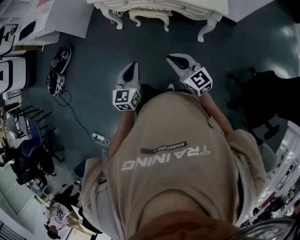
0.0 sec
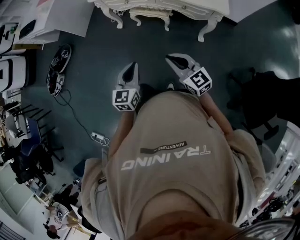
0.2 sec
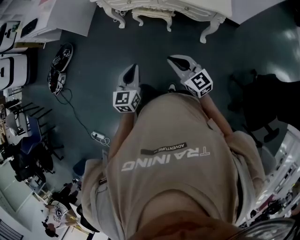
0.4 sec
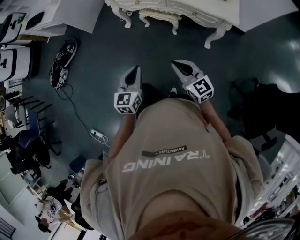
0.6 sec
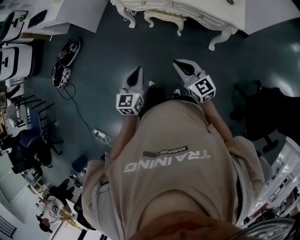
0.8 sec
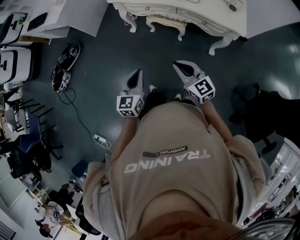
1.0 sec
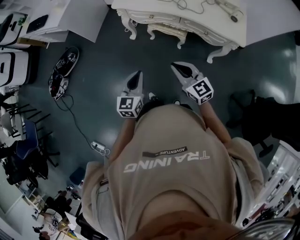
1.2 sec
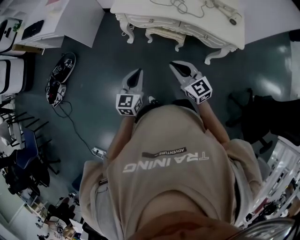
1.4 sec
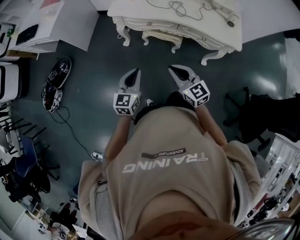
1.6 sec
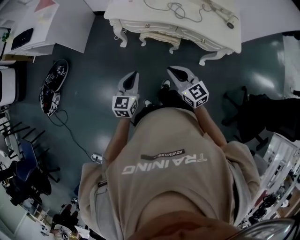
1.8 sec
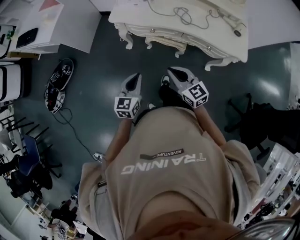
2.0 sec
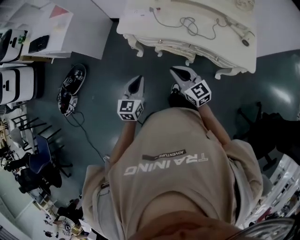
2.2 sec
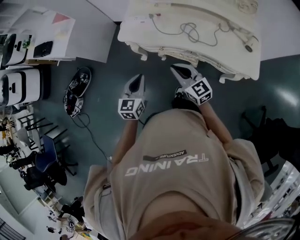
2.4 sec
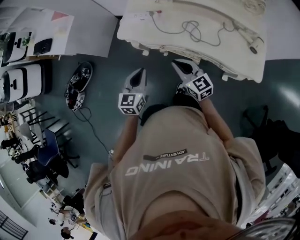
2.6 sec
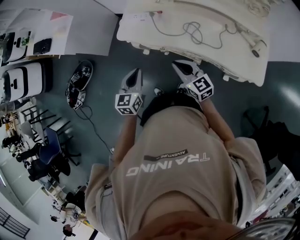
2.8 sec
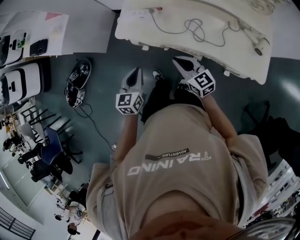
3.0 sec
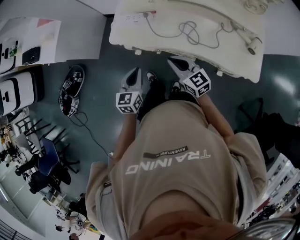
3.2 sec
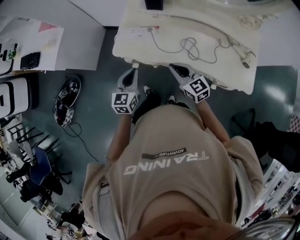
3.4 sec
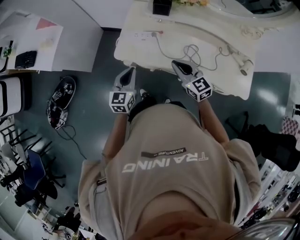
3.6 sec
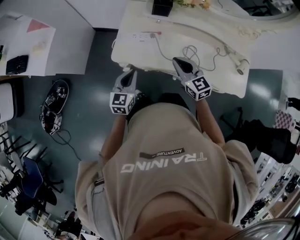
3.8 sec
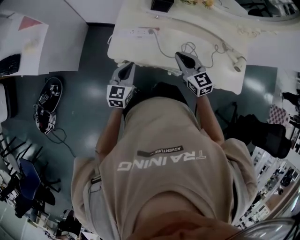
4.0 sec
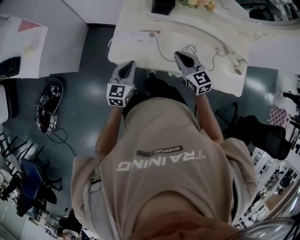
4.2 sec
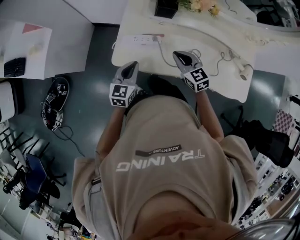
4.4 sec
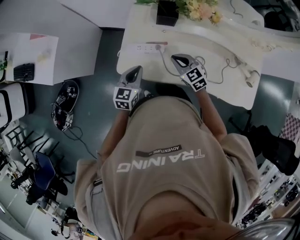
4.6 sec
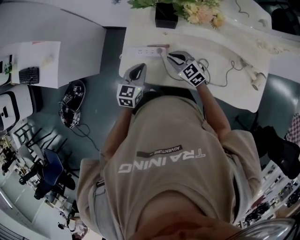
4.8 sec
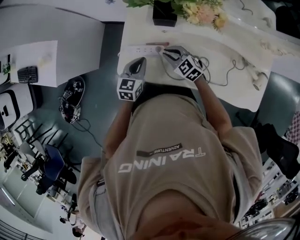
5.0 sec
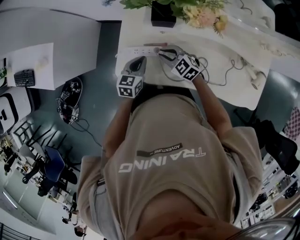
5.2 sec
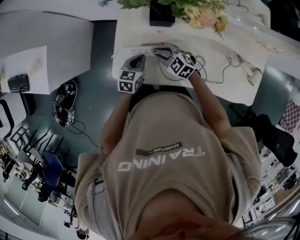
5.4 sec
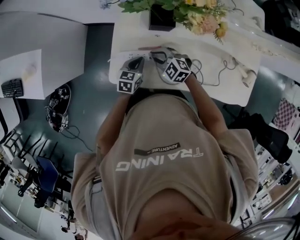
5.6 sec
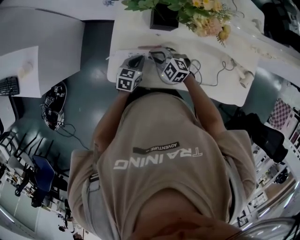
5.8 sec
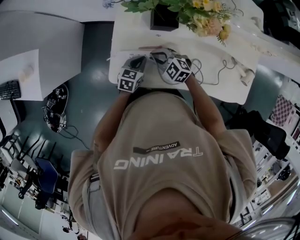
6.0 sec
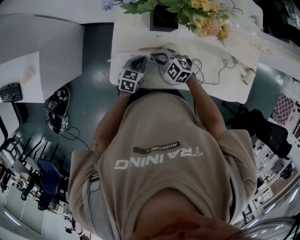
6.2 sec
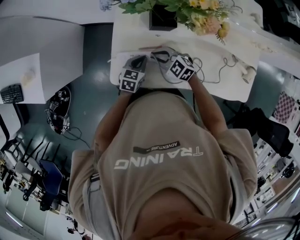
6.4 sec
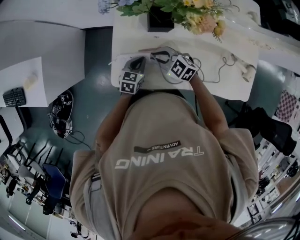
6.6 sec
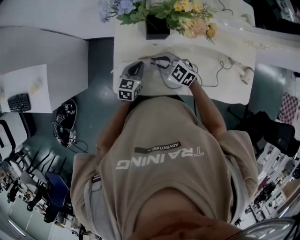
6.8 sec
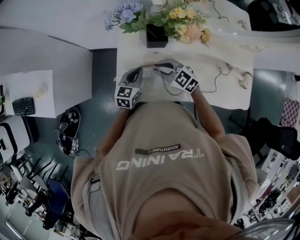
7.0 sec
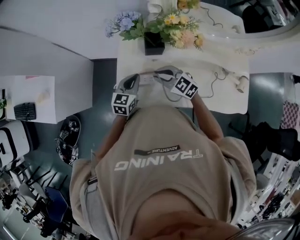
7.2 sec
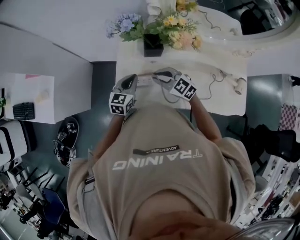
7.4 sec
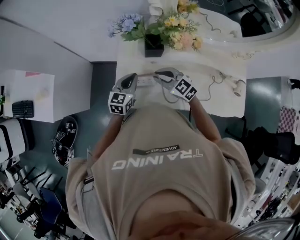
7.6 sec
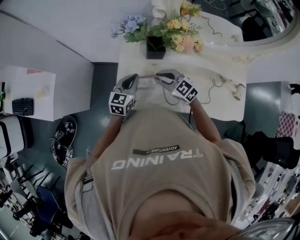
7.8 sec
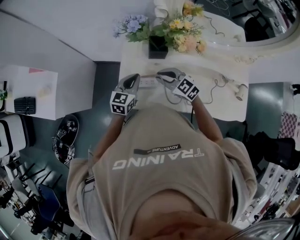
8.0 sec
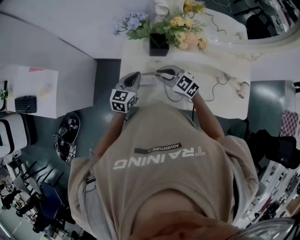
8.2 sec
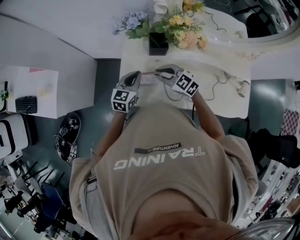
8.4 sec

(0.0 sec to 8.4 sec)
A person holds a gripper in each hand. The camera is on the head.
0.0 sec - 1.4 sec: Both grippers move forward and to the left, some 25 cm.
1.4 sec - 2.8 sec: The two grippers go some 30 cm forward.
2.8 sec - 4.2 sec: Both grippers move forward, roughly 25 cm. The right gripper changes its angle by some 20 degrees.
4.2 sec - 5.6 sec: The right gripper moves forward and downward, roughly 20 cm, rotates roughly 40 degrees, and opens up. The left gripper travels forward, downward and to the right by about 25 cm, and turns by some 30 degrees.
5.6 sec - 7.0 sec: The two grippers go about 10 cm upward.
7.0 sec - 8.4 sec: The left gripper shifts by roughly 5 cm.

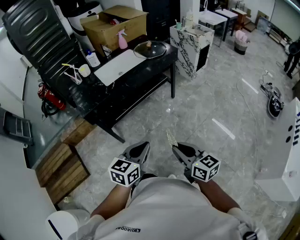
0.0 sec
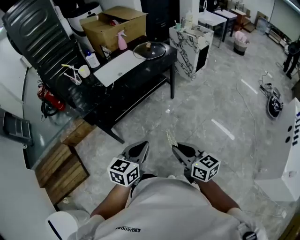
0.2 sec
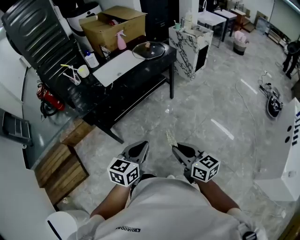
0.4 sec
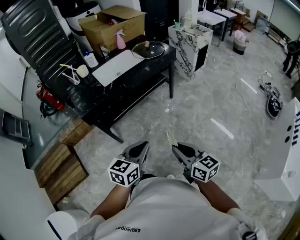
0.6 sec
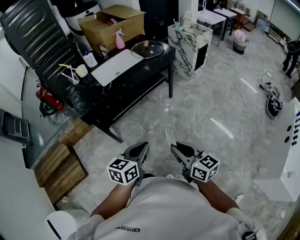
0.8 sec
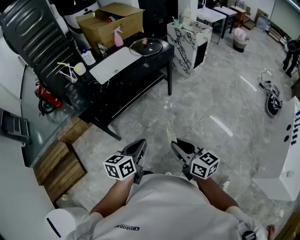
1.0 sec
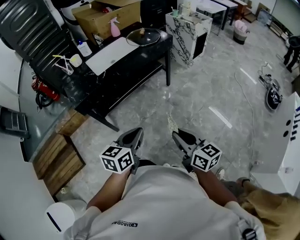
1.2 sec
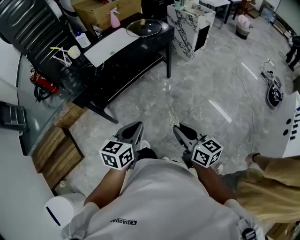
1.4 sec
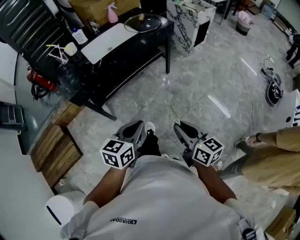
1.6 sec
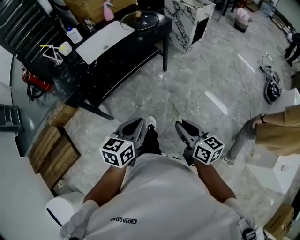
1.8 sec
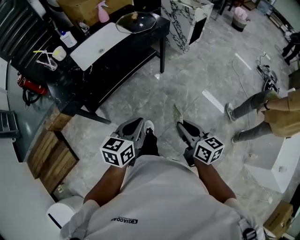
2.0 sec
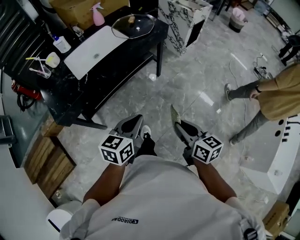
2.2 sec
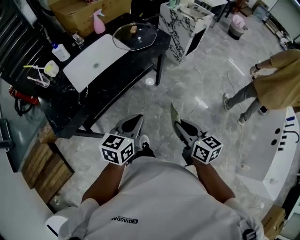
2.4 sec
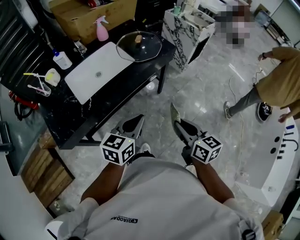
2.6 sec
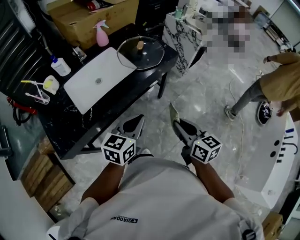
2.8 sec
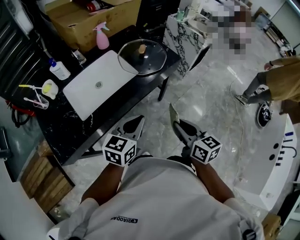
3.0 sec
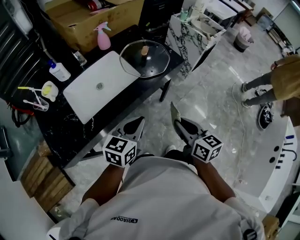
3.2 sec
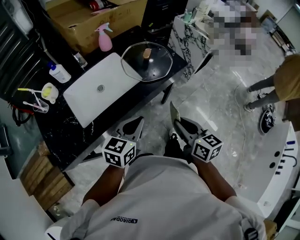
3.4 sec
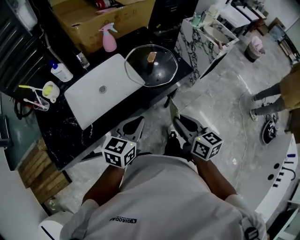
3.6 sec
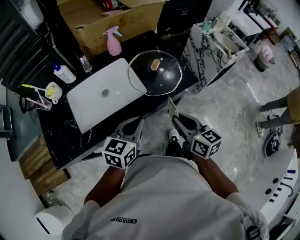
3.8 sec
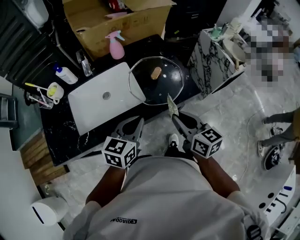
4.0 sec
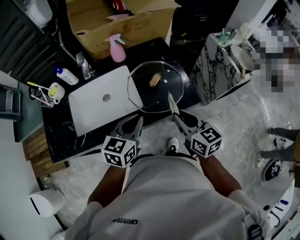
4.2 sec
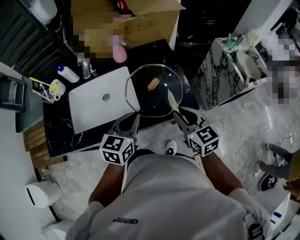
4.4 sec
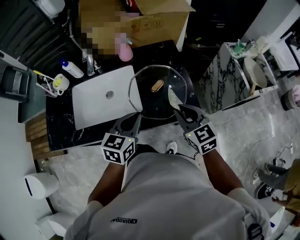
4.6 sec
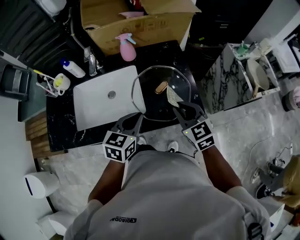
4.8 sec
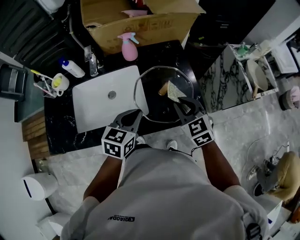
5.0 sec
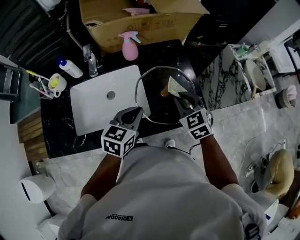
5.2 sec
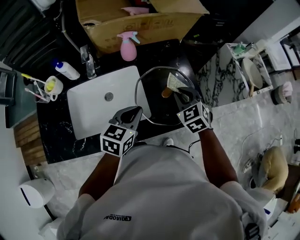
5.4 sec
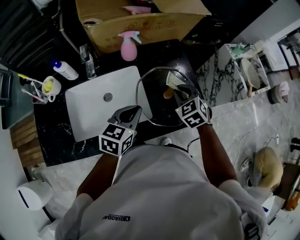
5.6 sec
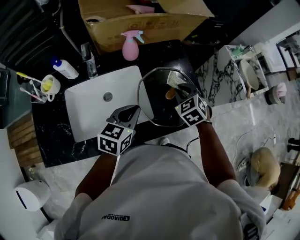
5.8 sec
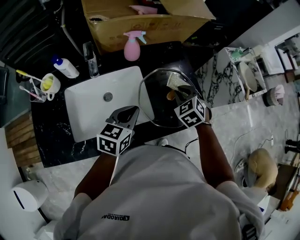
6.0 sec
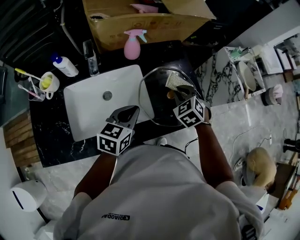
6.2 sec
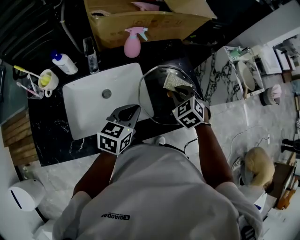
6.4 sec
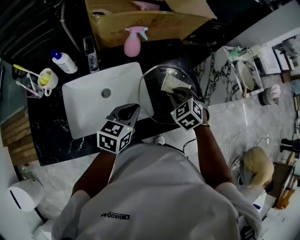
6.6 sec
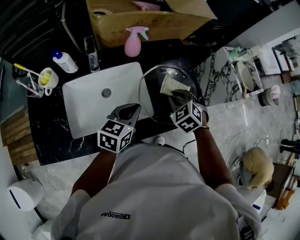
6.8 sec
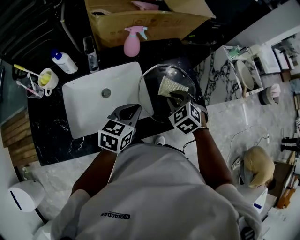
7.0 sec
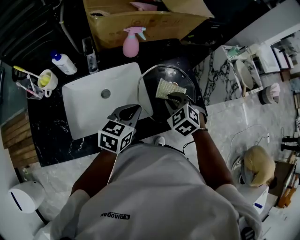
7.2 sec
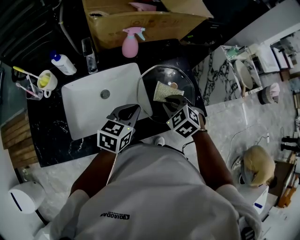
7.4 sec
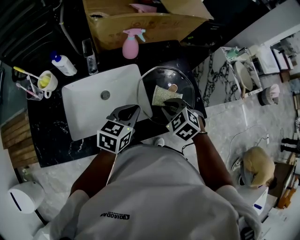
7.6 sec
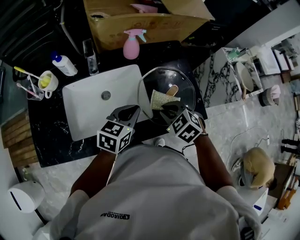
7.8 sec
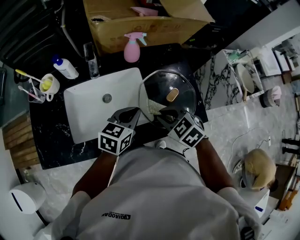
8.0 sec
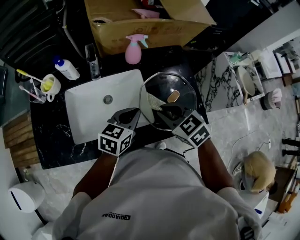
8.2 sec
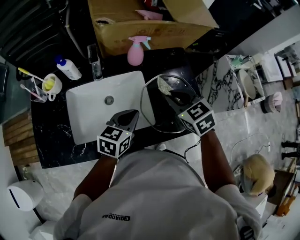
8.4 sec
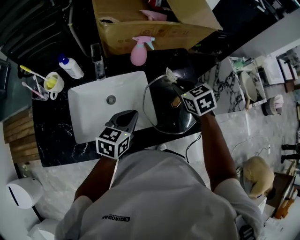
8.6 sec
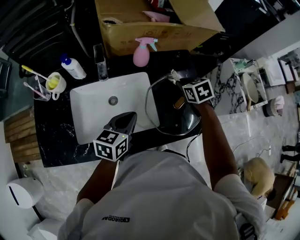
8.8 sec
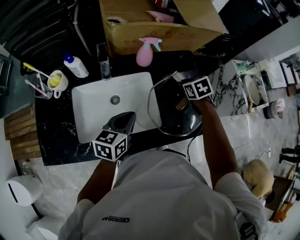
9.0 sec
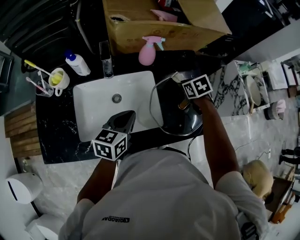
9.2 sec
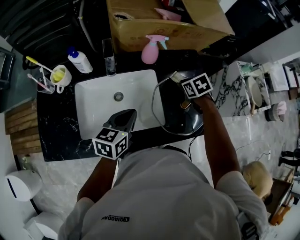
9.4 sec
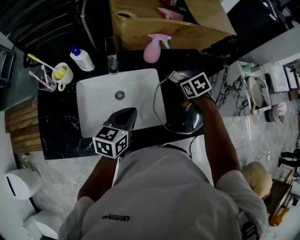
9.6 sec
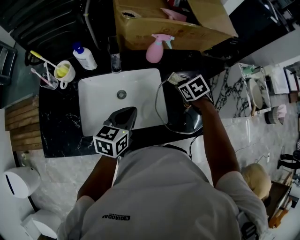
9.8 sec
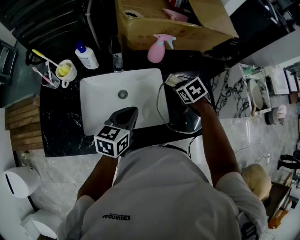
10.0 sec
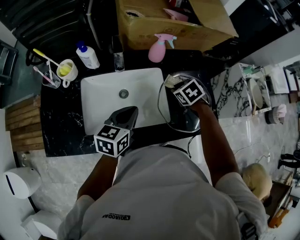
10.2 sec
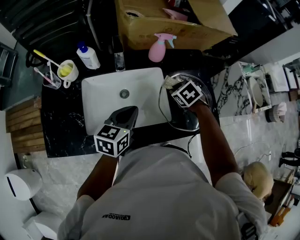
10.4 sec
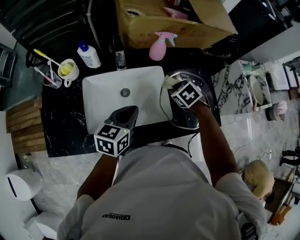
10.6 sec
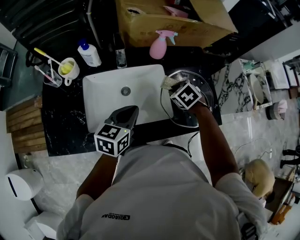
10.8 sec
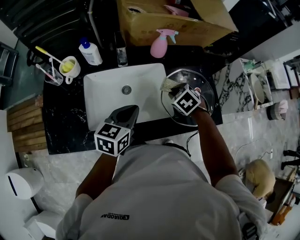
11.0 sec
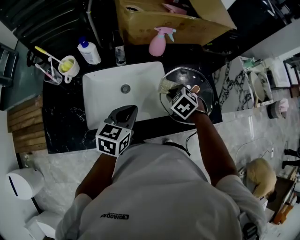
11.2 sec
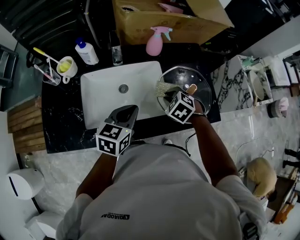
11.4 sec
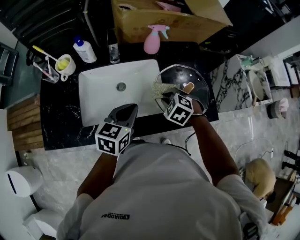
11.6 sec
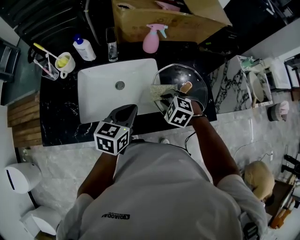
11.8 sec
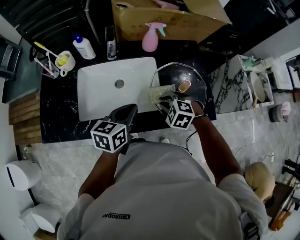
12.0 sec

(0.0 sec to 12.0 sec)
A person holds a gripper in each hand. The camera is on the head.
0.0 sec - 1.6 sec: The right gripper goes roughly 5 cm to the right. The left gripper ends up some 5 cm from where it was.
1.6 sec - 3.0 sec: Both grippers are carried forward, roughly 40 cm.
3.0 sec - 4.4 sec: The left gripper moves some 30 cm, and rotates approximately 30 degrees; the right gripper changes place by roughly 35 cm, and turns by about 40 degrees.
4.4 sec - 6.0 sec: The left gripper moves to the left and forward, roughly 15 cm. Meanwhile the right gripper moves forward, to the left and downward, some 20 cm, and turns by about 50 degrees.
6.0 sec - 7.6 sec: The right gripper travels backward by approximately 10 cm.
7.6 sec - 9.0 sec: The right gripper moves forward, about 15 cm, and swivels about 30 degrees, while the left gripper moves to the left, approximately 5 cm.
9.0 sec - 10.4 sec: The right gripper goes roughly 10 cm to the left and backward, and changes its angle by about 20 degrees.
10.4 sec - 12.0 sec: The left gripper moves to the right and backward, approximately 5 cm; the right gripper goes some 15 cm backward, and rotates roughly 40 degrees.

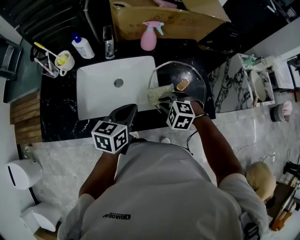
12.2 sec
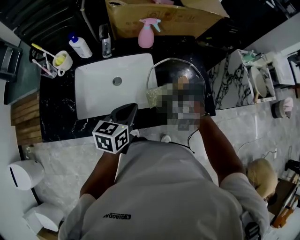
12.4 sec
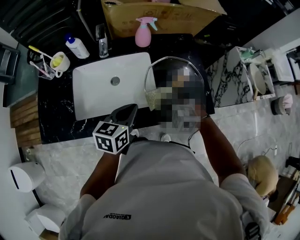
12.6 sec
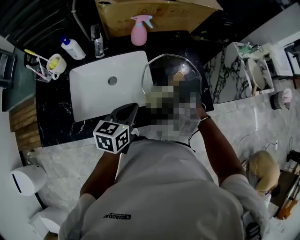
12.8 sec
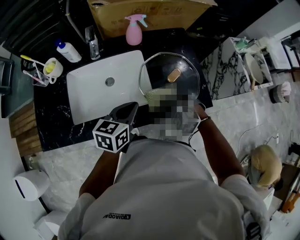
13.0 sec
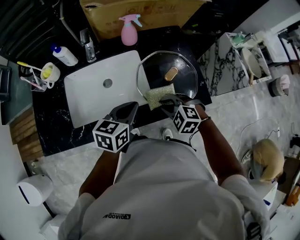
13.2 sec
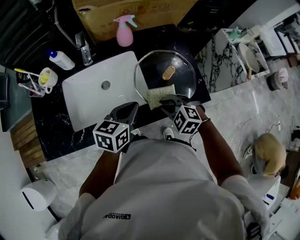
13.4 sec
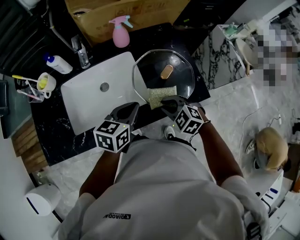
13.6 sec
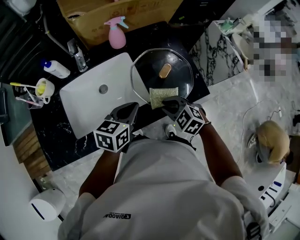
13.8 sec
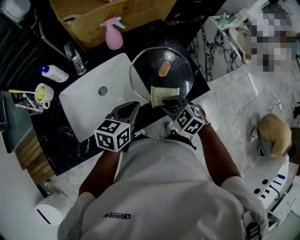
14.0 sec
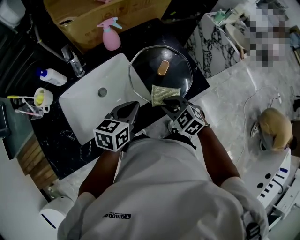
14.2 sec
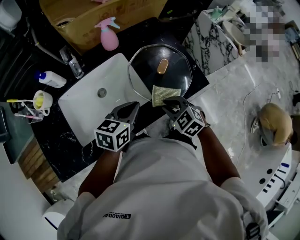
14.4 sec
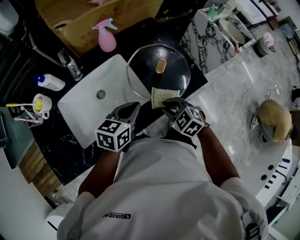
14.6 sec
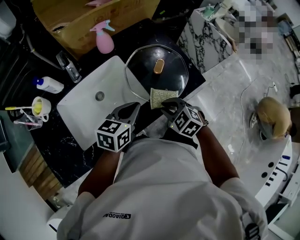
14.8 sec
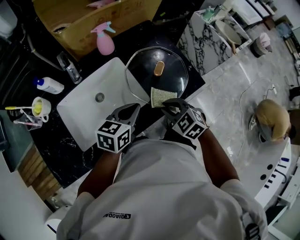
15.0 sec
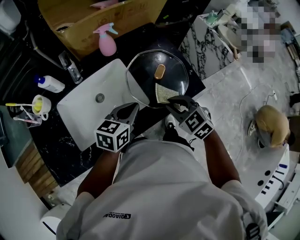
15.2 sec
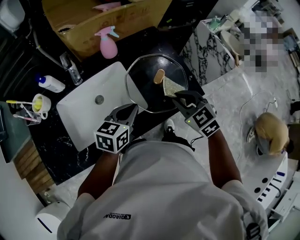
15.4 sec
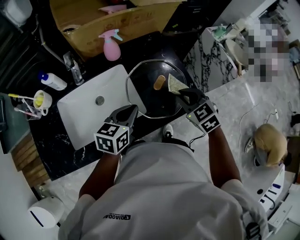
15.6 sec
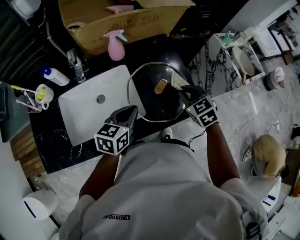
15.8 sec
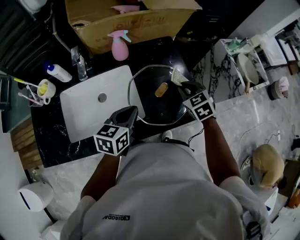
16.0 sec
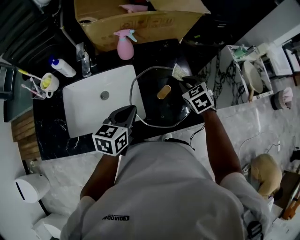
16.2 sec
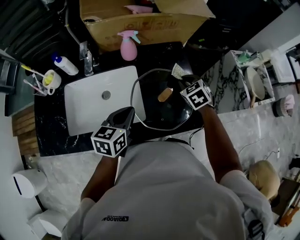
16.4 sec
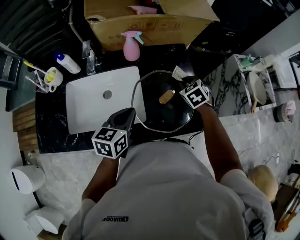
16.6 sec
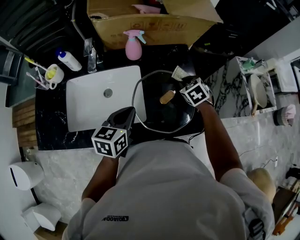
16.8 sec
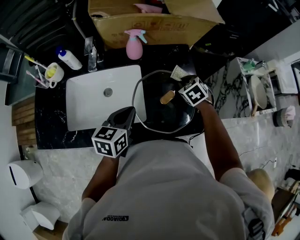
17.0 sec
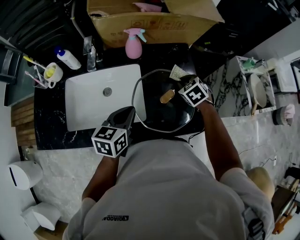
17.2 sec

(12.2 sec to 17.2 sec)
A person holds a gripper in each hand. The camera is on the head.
12.2 sec - 13.8 sec: The grippers both shift to the right by roughly 5 cm. The right gripper swivels about 30 degrees.
13.8 sec - 15.6 sec: The right gripper travels upward, forward and to the right by some 15 cm, and turns by some 20 degrees.
15.6 sec - 17.2 sec: The left gripper swivels some 20 degrees; the right gripper travels forward and downward by approximately 20 cm.
